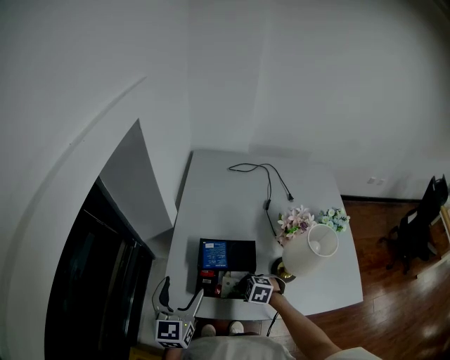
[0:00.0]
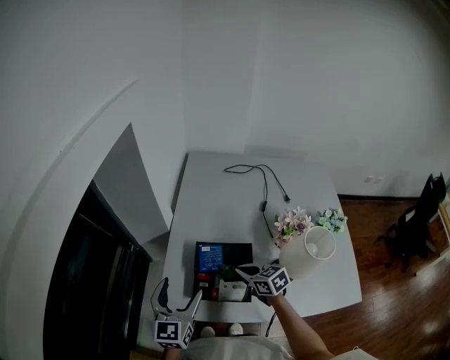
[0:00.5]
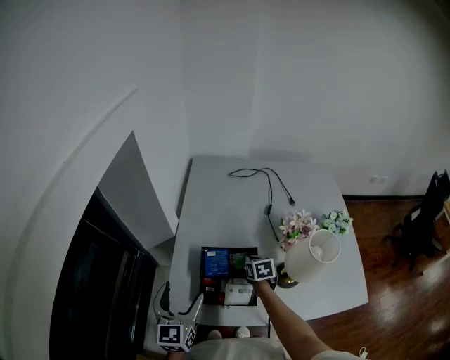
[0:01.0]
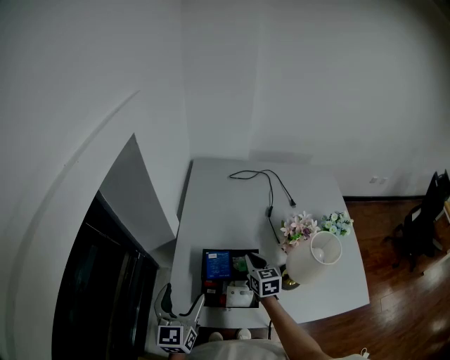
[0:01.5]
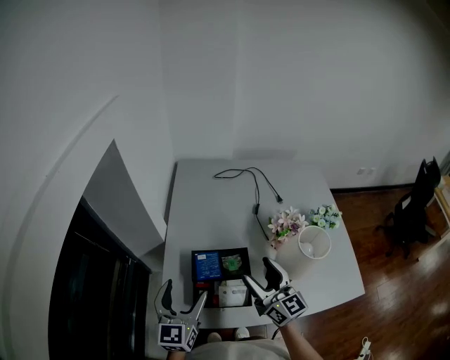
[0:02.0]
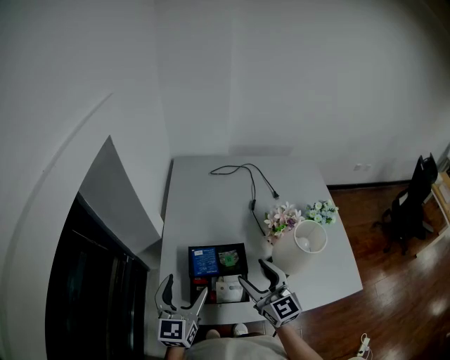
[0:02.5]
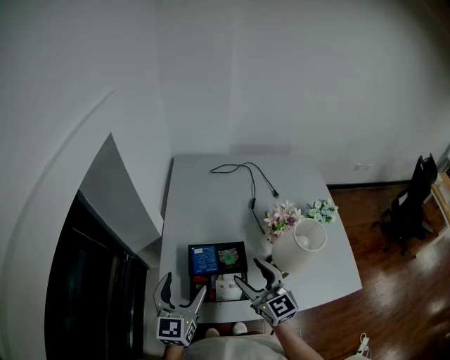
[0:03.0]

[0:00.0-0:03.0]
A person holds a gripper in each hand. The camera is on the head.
0:00.0 to 0:01.5: The right gripper is displaced forward, upward and to the right by about 20 cm, and points its fingers approximately 40 degrees further upward.
0:01.5 to 0:03.0: The left gripper moves roughly 5 cm, while the right gripper is displaced upward and backward by about 20 cm, rotates approximately 30 degrees, and opens up.

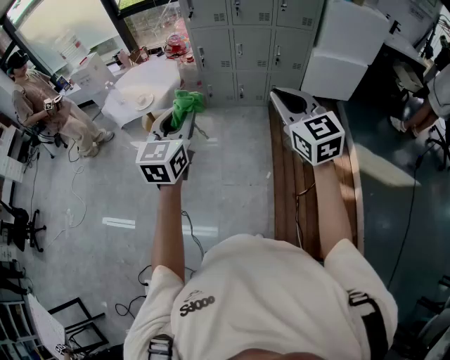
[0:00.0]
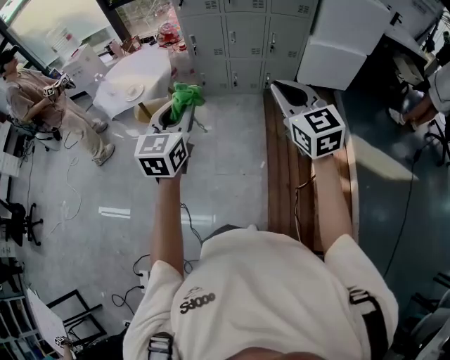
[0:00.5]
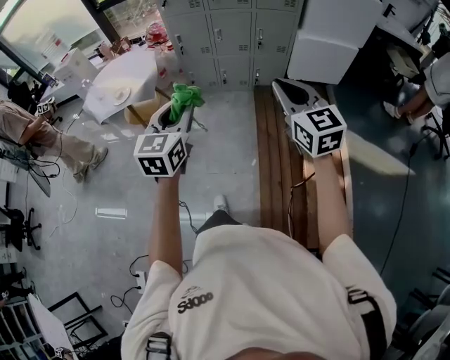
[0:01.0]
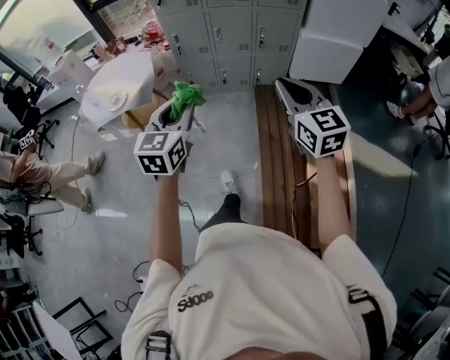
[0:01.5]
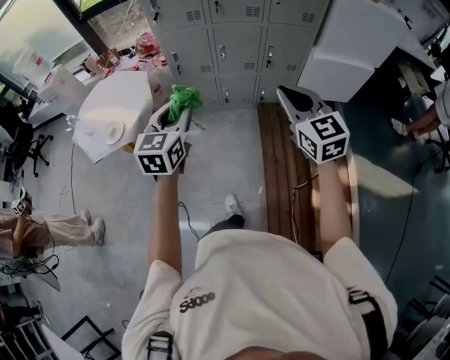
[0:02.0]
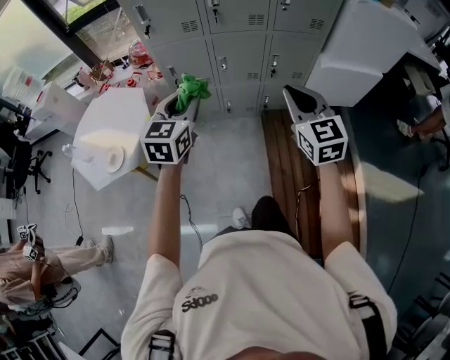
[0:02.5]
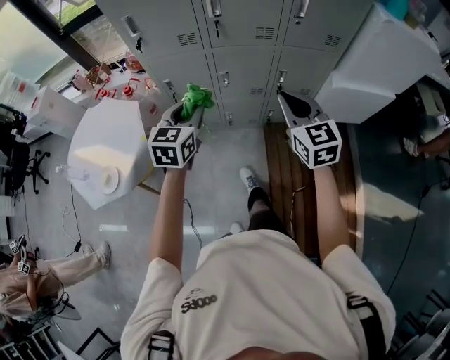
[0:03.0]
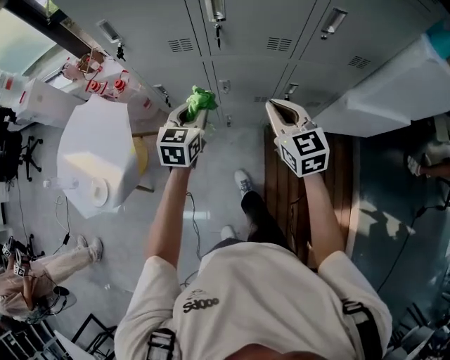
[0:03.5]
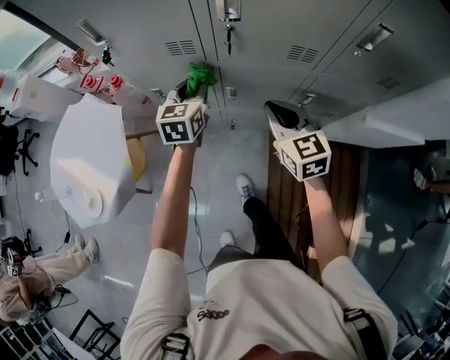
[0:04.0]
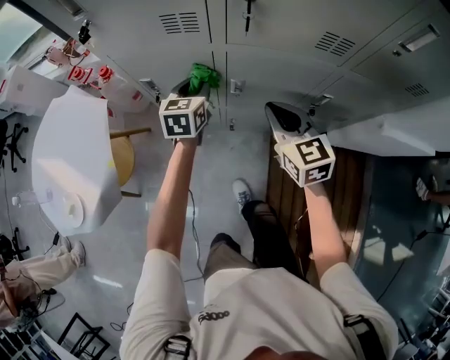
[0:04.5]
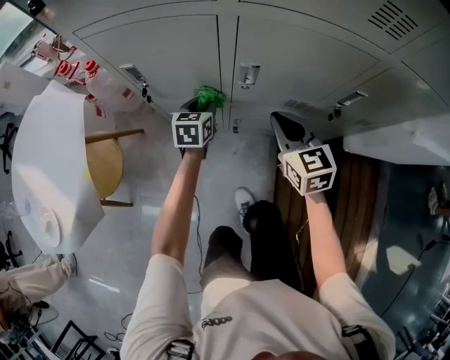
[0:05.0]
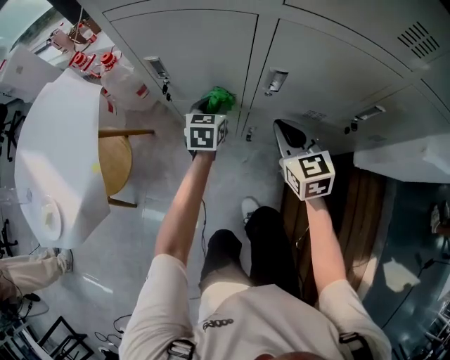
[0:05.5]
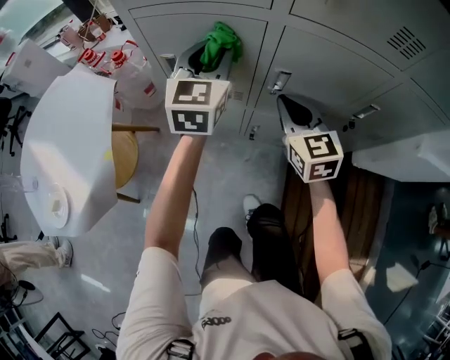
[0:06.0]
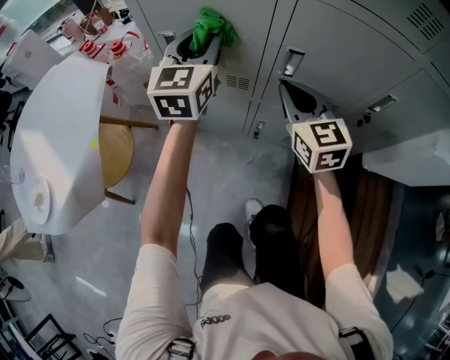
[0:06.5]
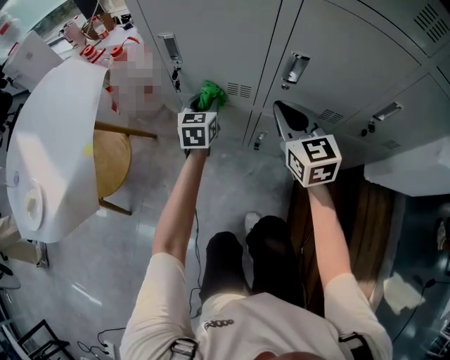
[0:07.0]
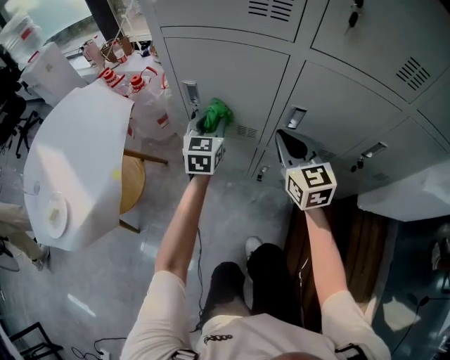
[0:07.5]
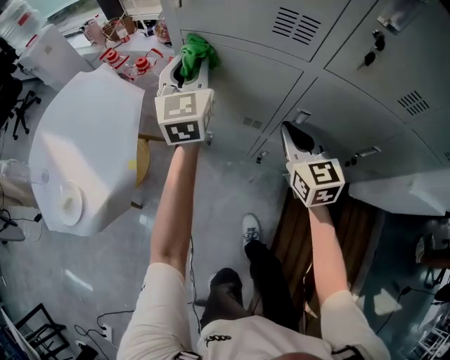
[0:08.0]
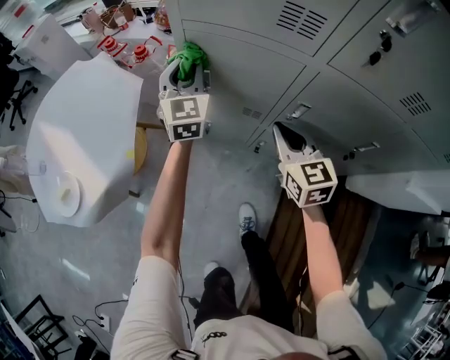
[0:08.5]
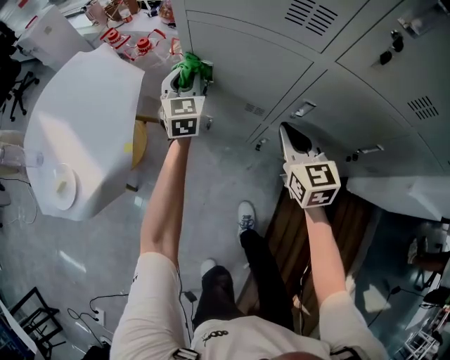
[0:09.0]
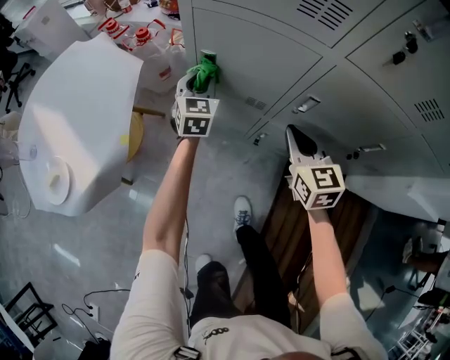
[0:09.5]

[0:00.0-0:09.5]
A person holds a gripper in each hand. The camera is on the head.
0:00.0 to 0:02.0: Both grippers travel together forward, approximately 35 cm.
0:02.0 to 0:04.0: The pair of grippers is taken forward, roughly 60 cm.
0:04.0 to 0:05.5: Both grippers move downward, about 30 cm.
0:05.5 to 0:07.5: The right gripper swings up and down, roughly 10 cm each way, with 2 reversals. The left gripper swings up and down, roughly 30 cm each way, with 2 reversals, and changes its angle by roughly 20 degrees.
0:07.5 to 0:09.5: The left gripper shifts approximately 10 cm to the left, and moves roughly 25 cm upward and comes back, while the right gripper reaches some 10 cm upward, then returns.

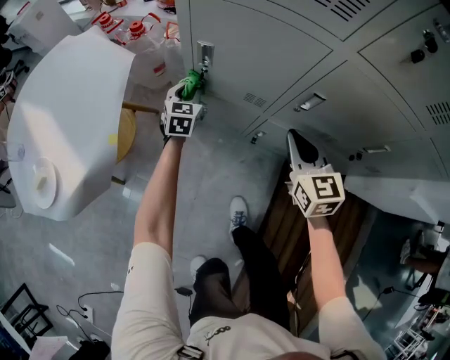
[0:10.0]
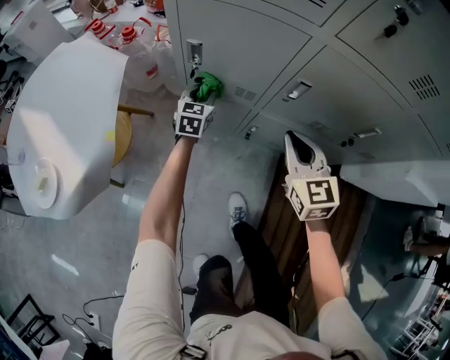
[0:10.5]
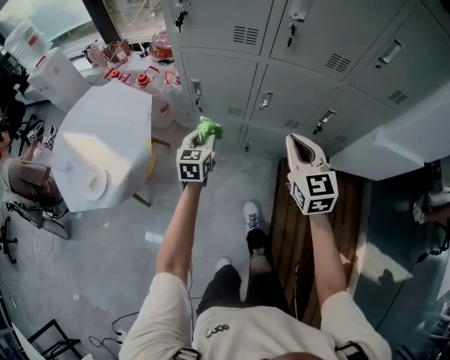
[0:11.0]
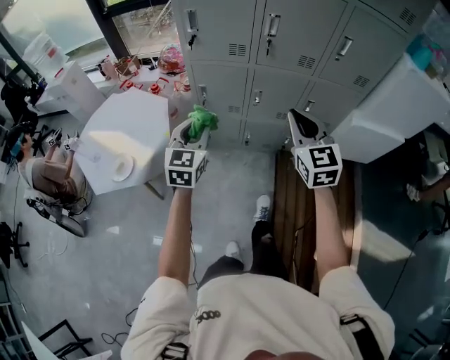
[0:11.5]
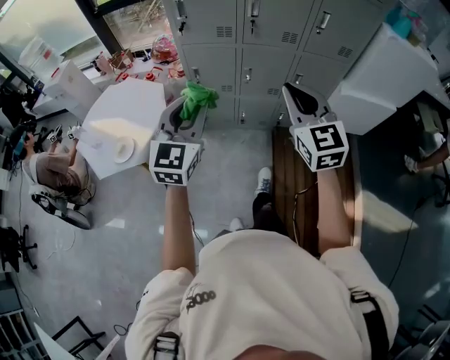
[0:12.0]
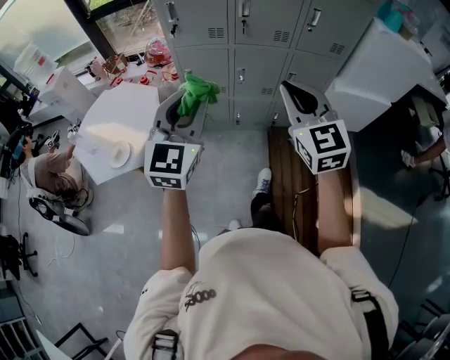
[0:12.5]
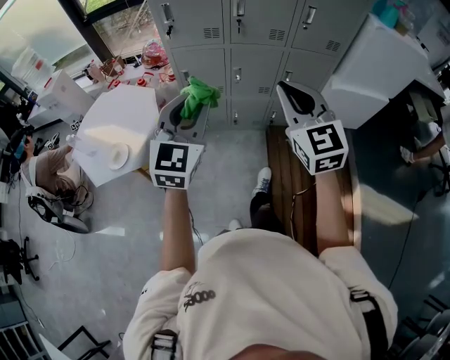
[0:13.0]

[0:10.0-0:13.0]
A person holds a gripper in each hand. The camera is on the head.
0:10.0 to 0:11.5: The grippers both shift upward and backward by approximately 60 cm. The right gripper turns by about 20 degrees. Meanwhile the left gripper changes its angle by about 20 degrees.
0:11.5 to 0:13.0: The right gripper heads backward and upward, covering about 15 cm. The left gripper heads backward, upward and to the right, covering about 20 cm.

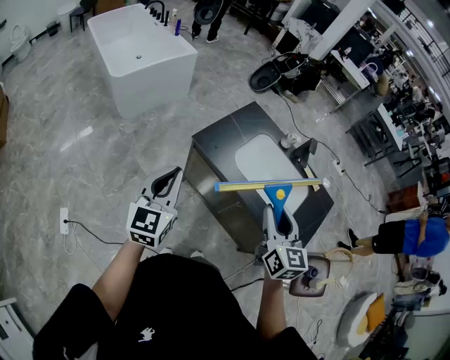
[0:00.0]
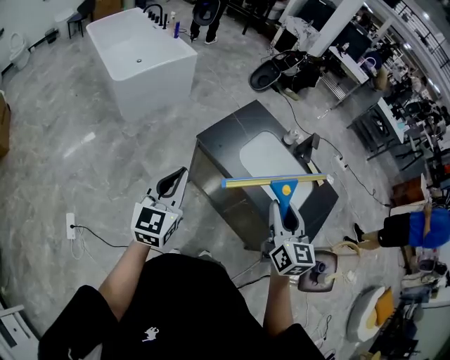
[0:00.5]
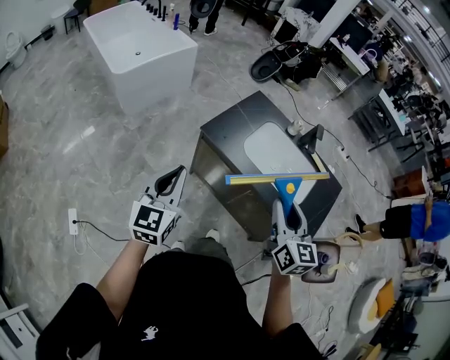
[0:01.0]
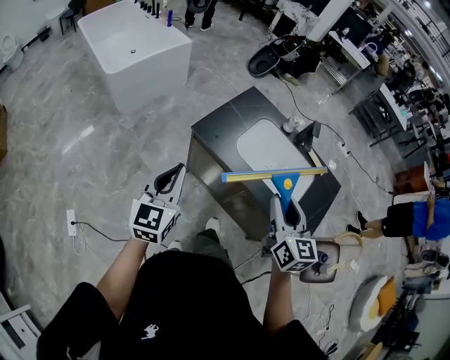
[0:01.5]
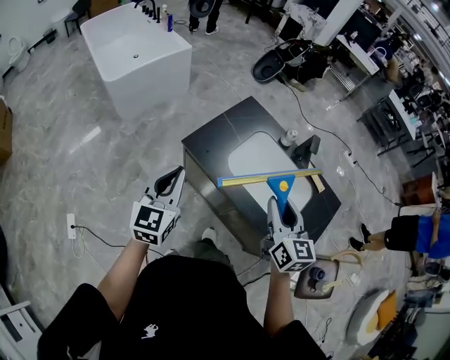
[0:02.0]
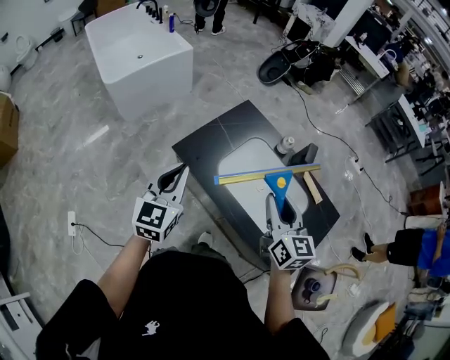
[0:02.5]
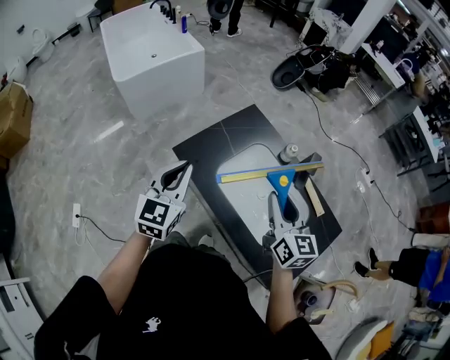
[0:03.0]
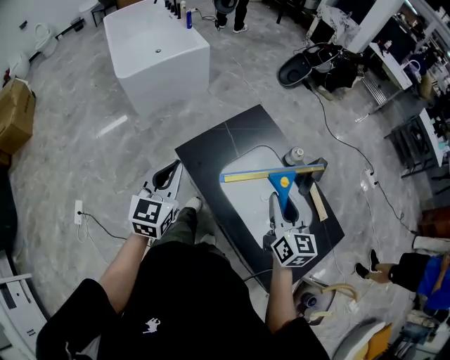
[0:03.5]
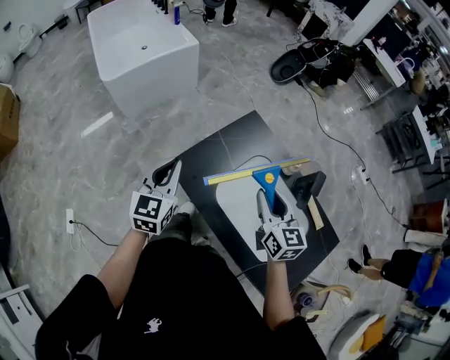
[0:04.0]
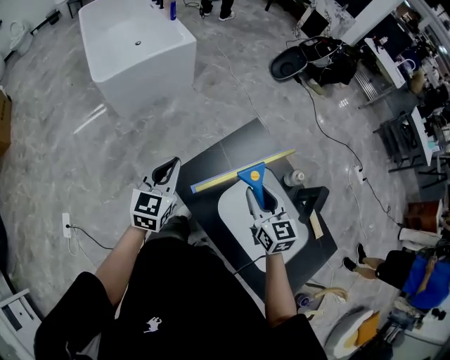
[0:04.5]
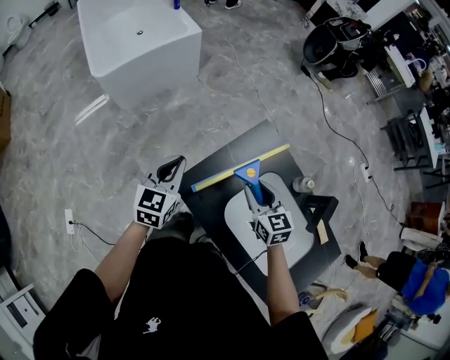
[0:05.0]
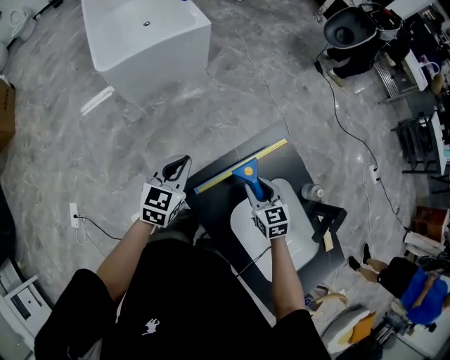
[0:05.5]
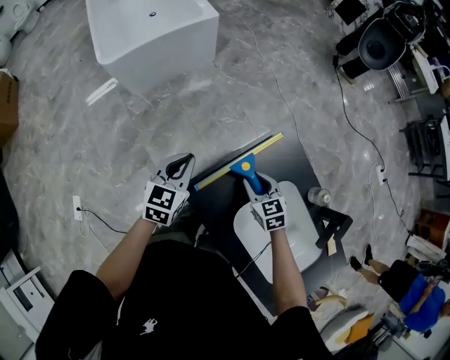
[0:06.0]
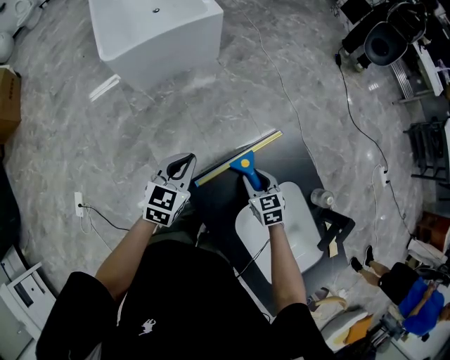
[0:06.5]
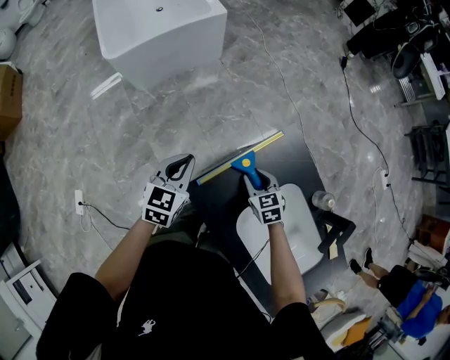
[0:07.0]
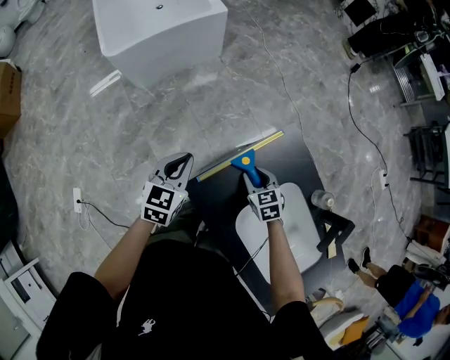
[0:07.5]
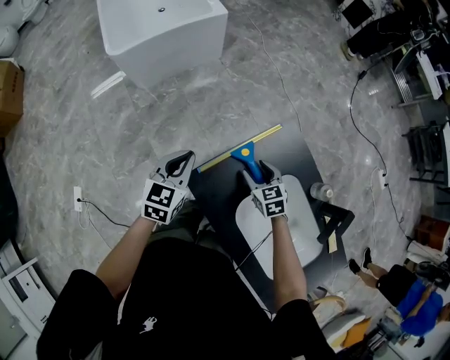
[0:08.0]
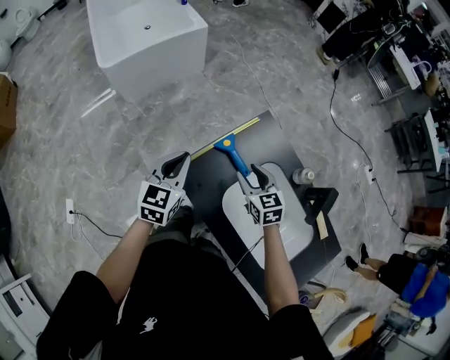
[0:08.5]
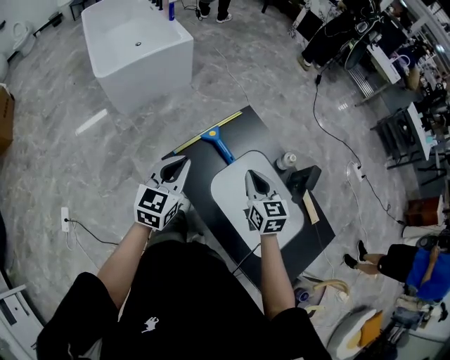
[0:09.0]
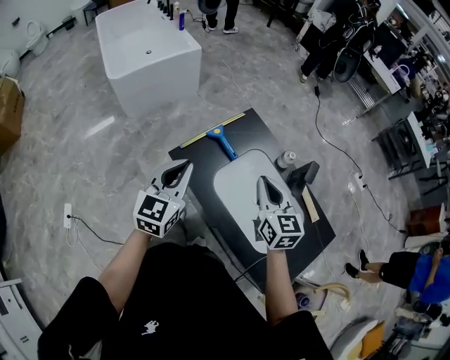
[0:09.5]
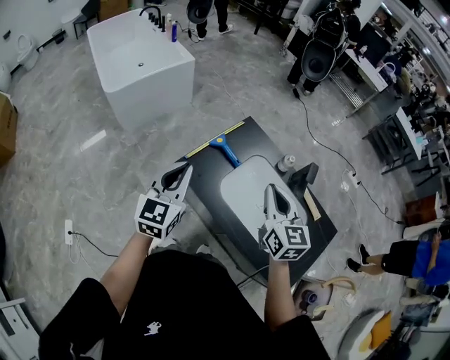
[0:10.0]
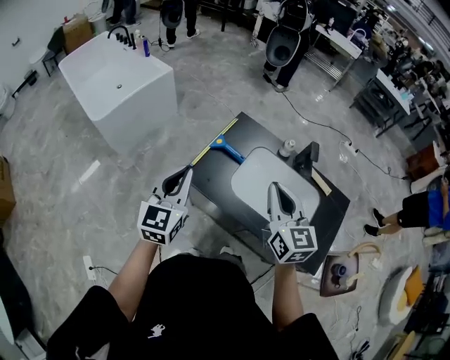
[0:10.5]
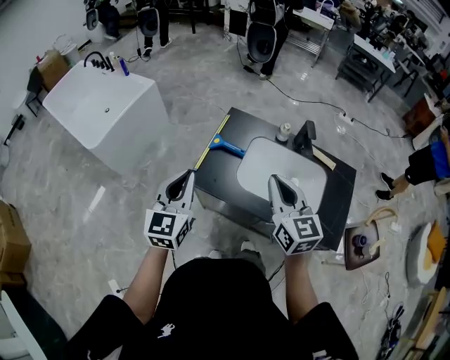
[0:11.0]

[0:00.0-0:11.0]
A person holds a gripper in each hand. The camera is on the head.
0:00.0 to 0:02.0: The grippers both shift forward and to the right by some 10 cm.
0:02.0 to 0:03.5: The grippers both shift forward and to the right by some 15 cm.
0:03.5 to 0:05.5: The right gripper goes roughly 35 cm forward, downward and to the left, and changes its angle by roughly 30 degrees. Meanwhile the left gripper is displaced forward and downward by some 30 cm.
0:05.5 to 0:07.5: The right gripper moves downward, some 10 cm.
0:07.5 to 0:09.0: The right gripper moves upward, backward and to the right, roughly 25 cm, rotates roughly 30 degrees, and closes; the left gripper shifts some 25 cm backward, upward and to the right.
0:09.0 to 0:11.0: The left gripper goes roughly 15 cm upward, backward and to the left, while the right gripper heads backward and upward, covering about 25 cm, and rotates about 30 degrees.
